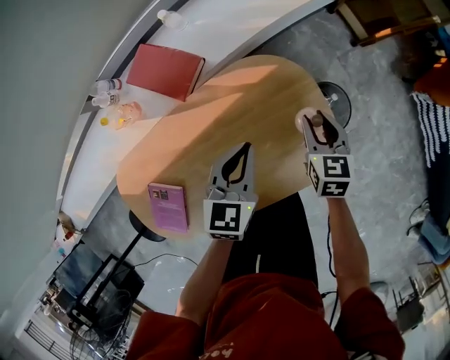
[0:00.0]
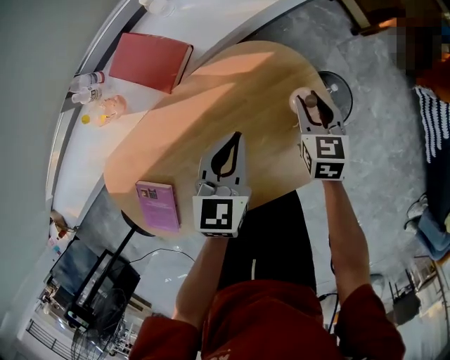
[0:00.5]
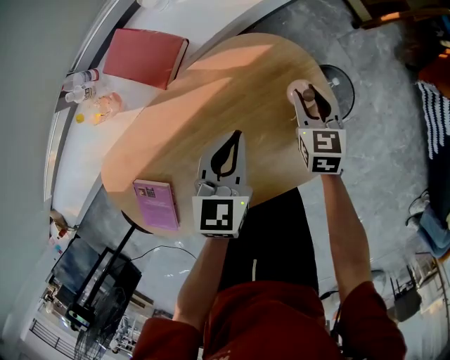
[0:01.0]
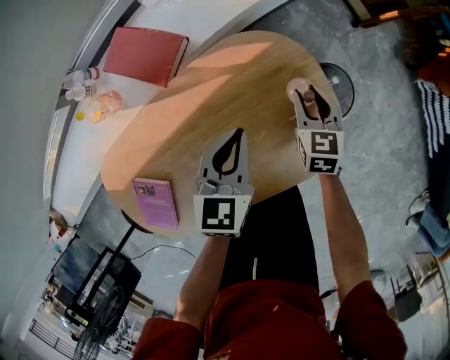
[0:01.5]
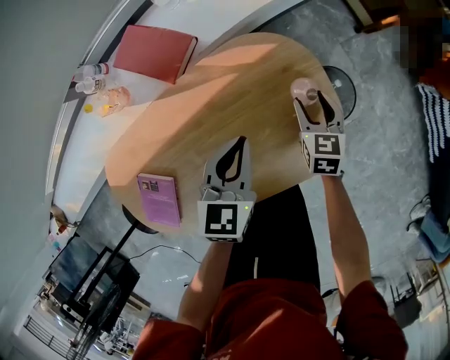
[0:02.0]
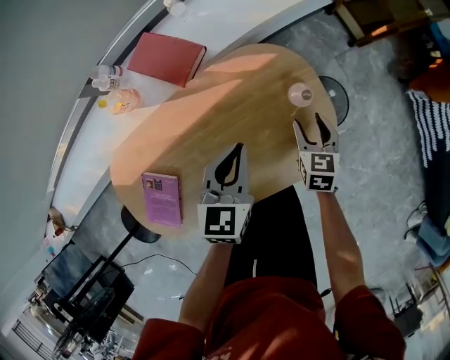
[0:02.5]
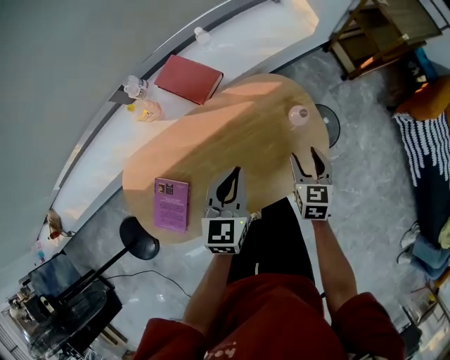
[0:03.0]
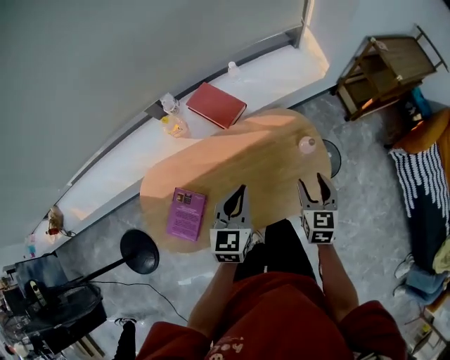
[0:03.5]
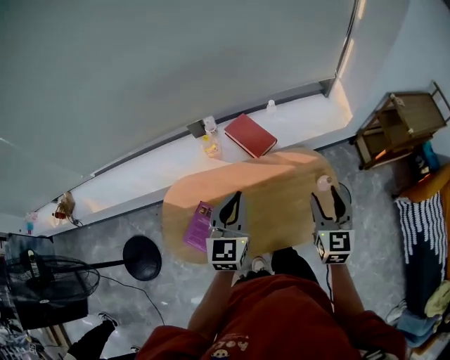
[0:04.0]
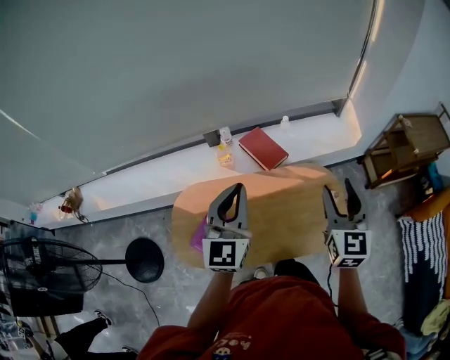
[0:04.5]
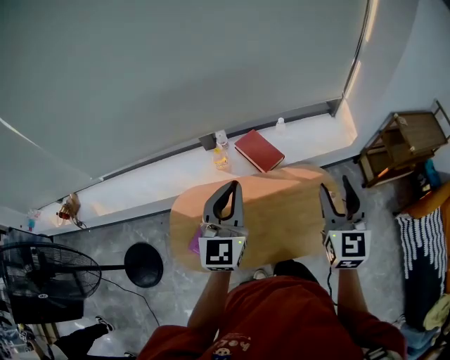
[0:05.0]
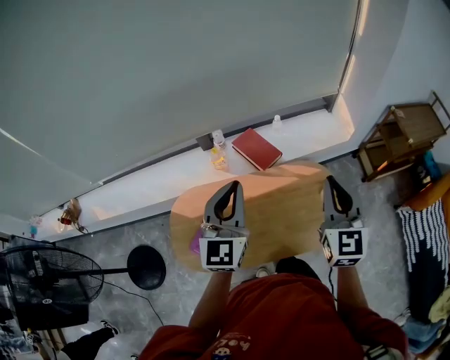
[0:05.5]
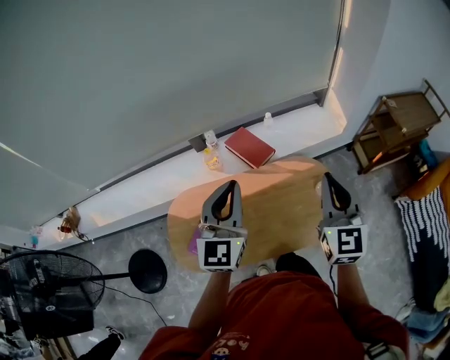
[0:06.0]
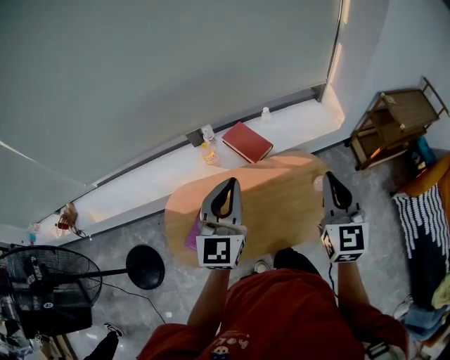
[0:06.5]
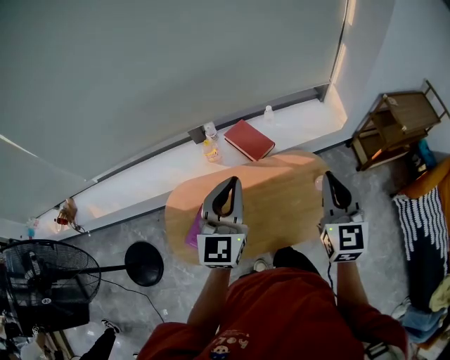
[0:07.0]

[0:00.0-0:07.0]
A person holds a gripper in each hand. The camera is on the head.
0:00.0 to 0:02.0: The right gripper is displaced downward by about 10 cm, and opens.
0:02.0 to 0:03.5: The left gripper shifts about 25 cm upward, backward and to the left, while the right gripper moves upward and backward, about 30 cm.
0:03.5 to 0:05.0: The right gripper goes some 30 cm upward, and swivels approximately 30 degrees, while the left gripper goes some 30 cm upward and to the left, and swivels about 30 degrees.
0:05.0 to 0:07.0: The right gripper closes up.

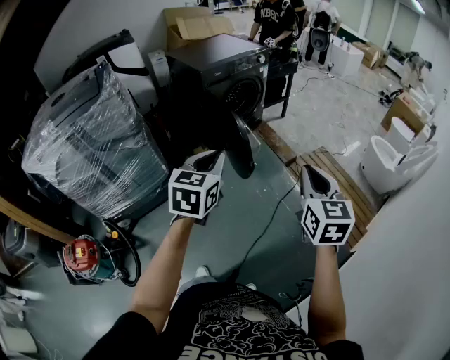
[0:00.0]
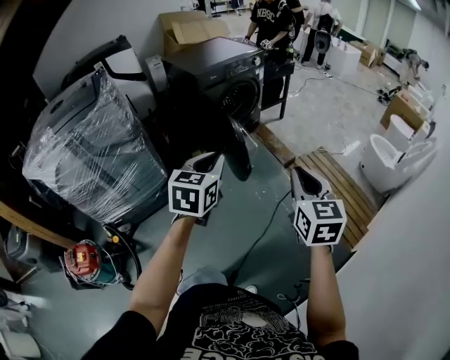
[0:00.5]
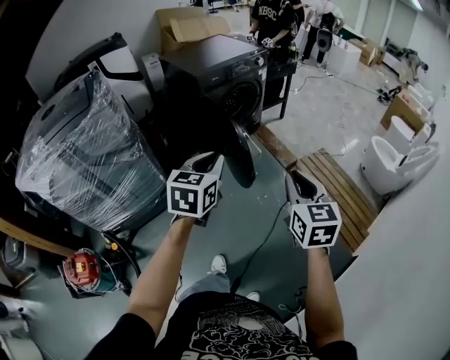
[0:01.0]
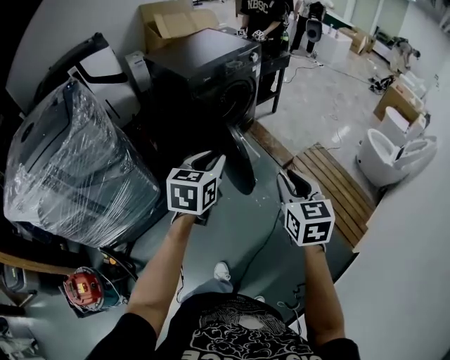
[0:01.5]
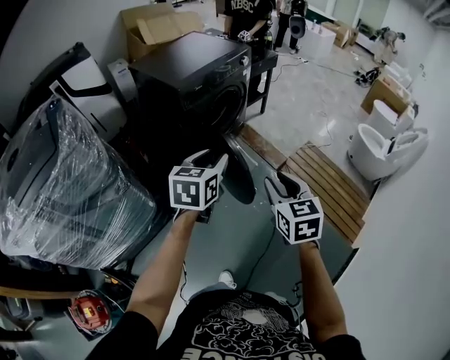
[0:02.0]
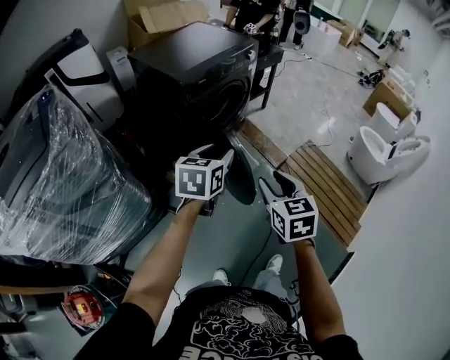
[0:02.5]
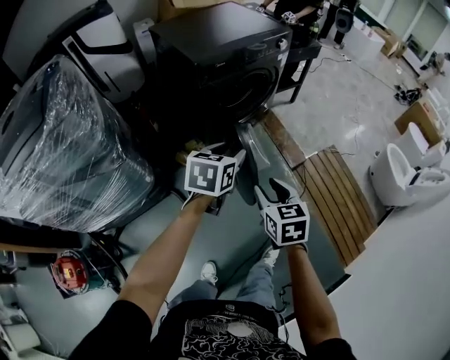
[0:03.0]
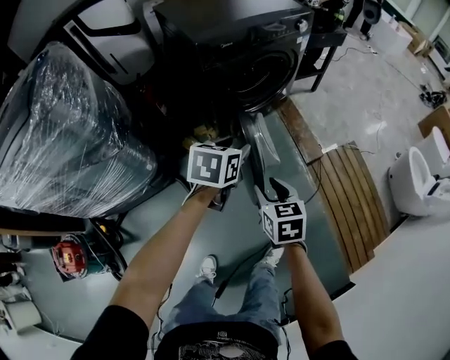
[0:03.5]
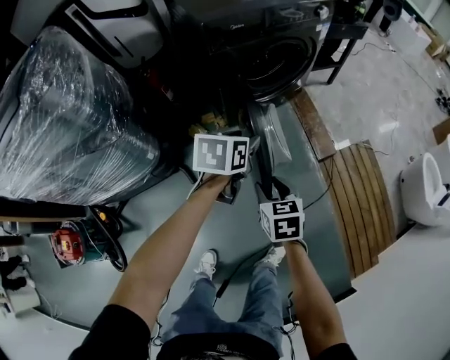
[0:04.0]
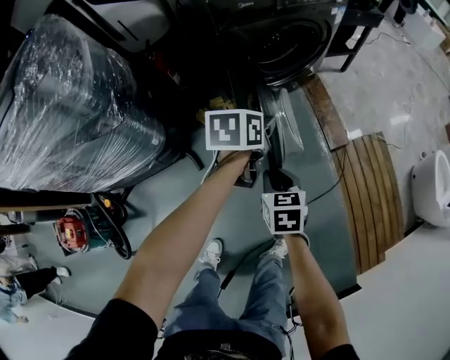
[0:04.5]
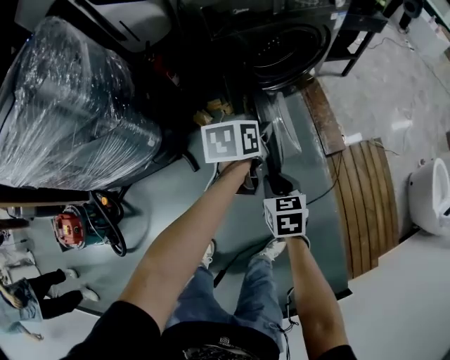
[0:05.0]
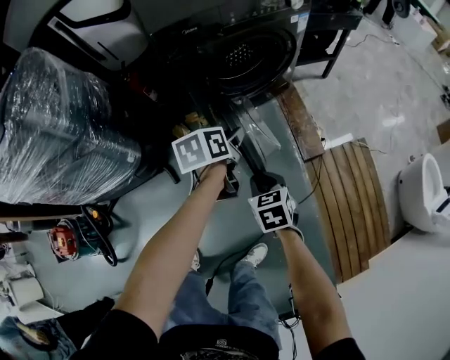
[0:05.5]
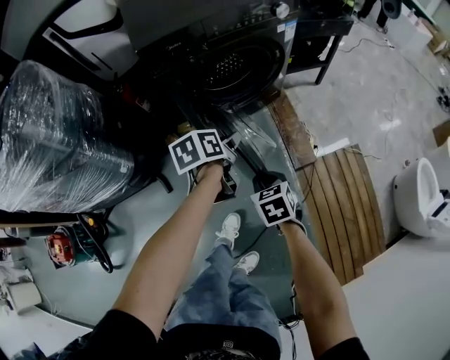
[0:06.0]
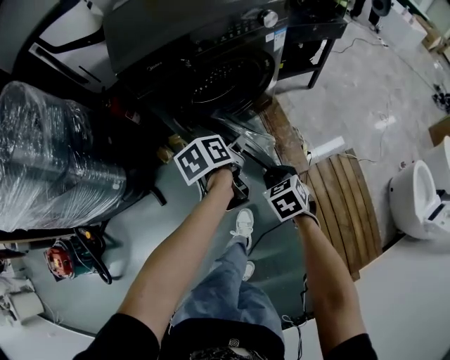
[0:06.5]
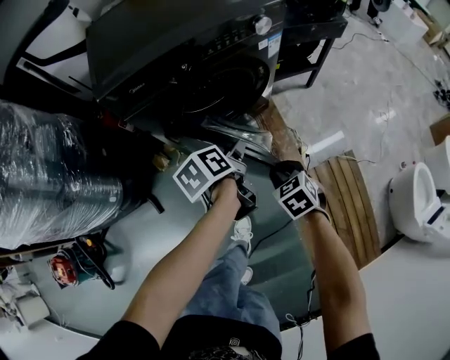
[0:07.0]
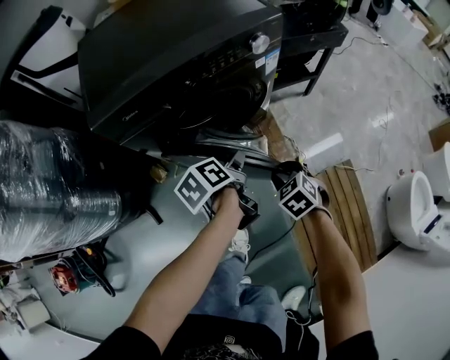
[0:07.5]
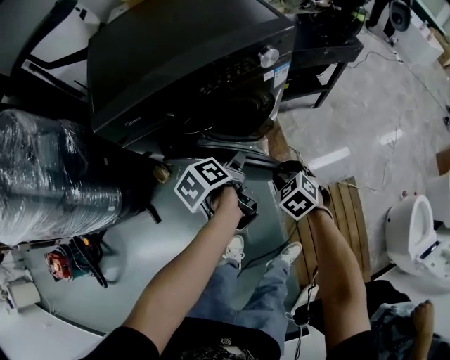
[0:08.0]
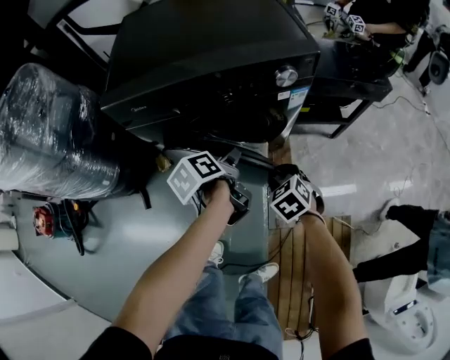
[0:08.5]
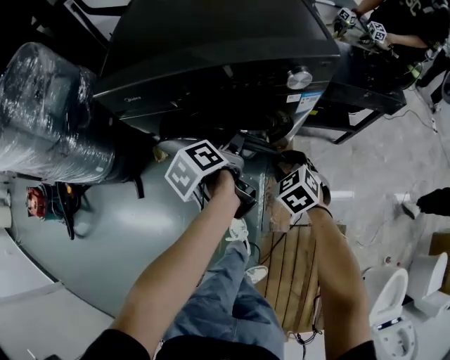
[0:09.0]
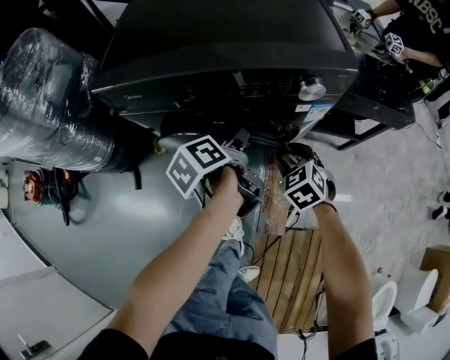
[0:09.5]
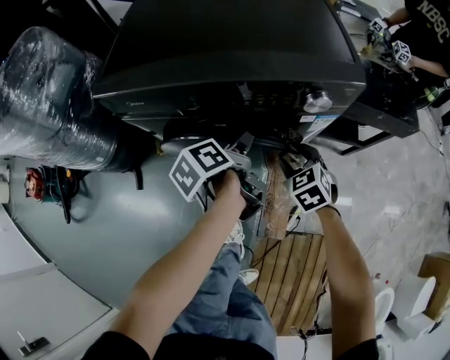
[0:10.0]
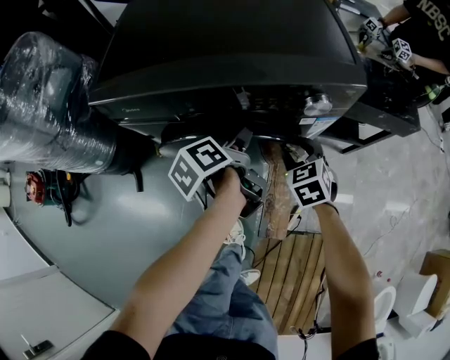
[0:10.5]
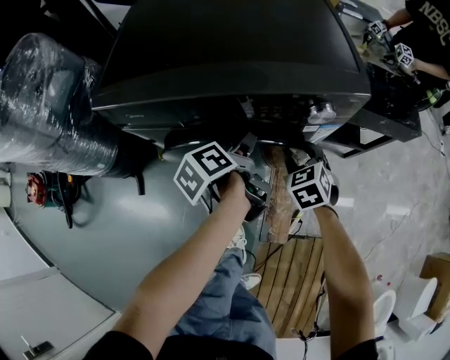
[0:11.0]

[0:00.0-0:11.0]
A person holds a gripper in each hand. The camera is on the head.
0:00.0 to 0:02.0: The left gripper moves forward, some 25 cm, and opens up, while the right gripper is displaced forward, to the left and downward by about 25 cm, and opens.
0:02.0 to 0:03.5: Both grippers move downward and forward, approximately 25 cm. The left gripper swivels roughly 20 degrees; the right gripper turns by approximately 20 degrees.
0:03.5 to 0:05.5: The right gripper goes approximately 15 cm downward, to the right and forward, and closes; the left gripper shifts about 15 cm downward, forward and to the right, and swivels approximately 40 degrees.
0:05.5 to 0:07.5: The right gripper heads forward and to the right, covering some 30 cm, and turns by some 30 degrees; the left gripper shifts some 20 cm forward and to the right, and swivels about 30 degrees.
0:07.5 to 0:09.0: The left gripper goes roughly 10 cm forward, and rotates approximately 30 degrees; the right gripper shifts about 15 cm forward, and turns by some 20 degrees.
0:09.0 to 0:11.0: The right gripper moves forward, approximately 10 cm. Meanwhile the left gripper moves forward, roughly 5 cm.

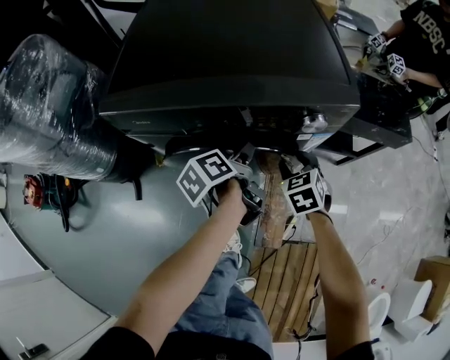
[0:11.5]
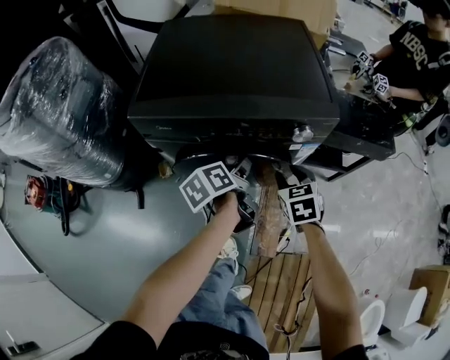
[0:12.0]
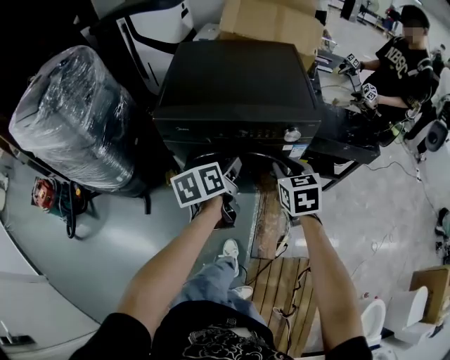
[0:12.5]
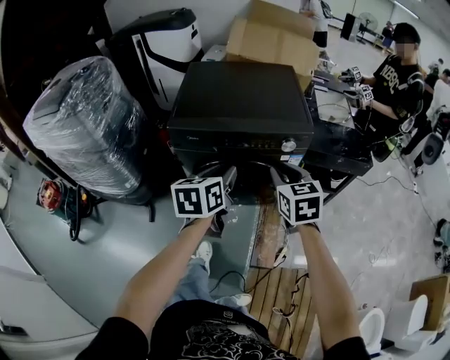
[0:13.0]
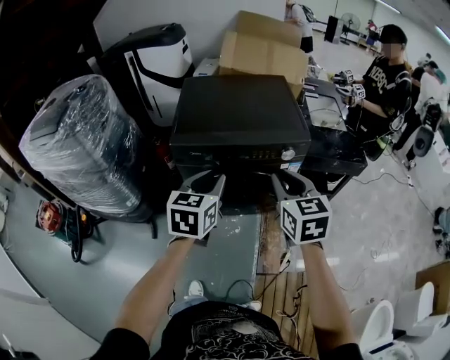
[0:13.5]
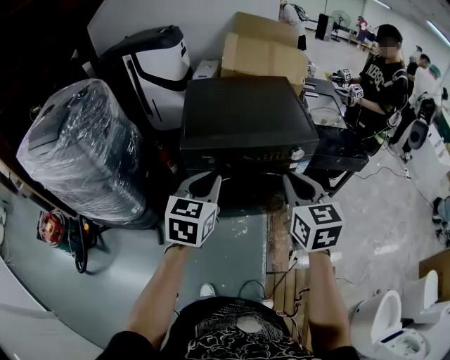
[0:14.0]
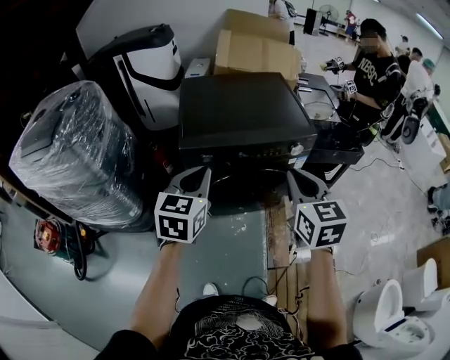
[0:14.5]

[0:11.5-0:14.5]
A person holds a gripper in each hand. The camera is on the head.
0:11.5 to 0:13.0: The two grippers go about 30 cm upward and backward. The right gripper swivels approximately 30 degrees, and closes its fingers. The left gripper rolls clockwise, seen from behind, by about 50 degrees, and closes its fingers.
0:13.0 to 0:14.5: The right gripper heads upward, to the left and backward, covering some 15 cm; the left gripper heads to the left and upward, covering about 15 cm, swivels roughly 30 degrees, and closes its fingers.

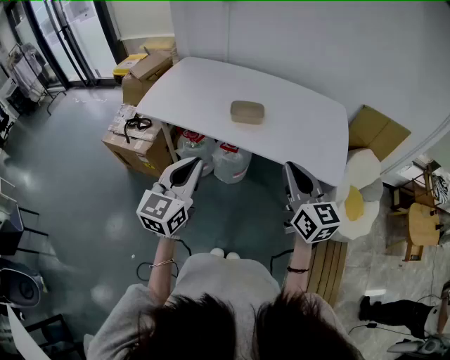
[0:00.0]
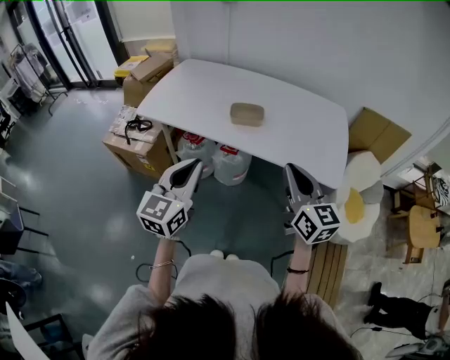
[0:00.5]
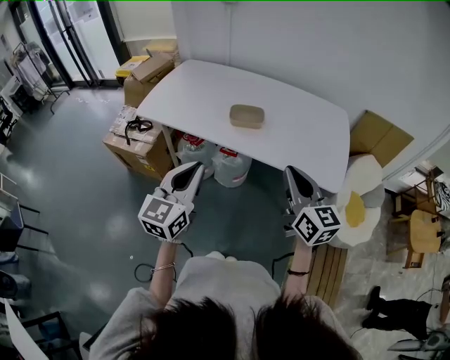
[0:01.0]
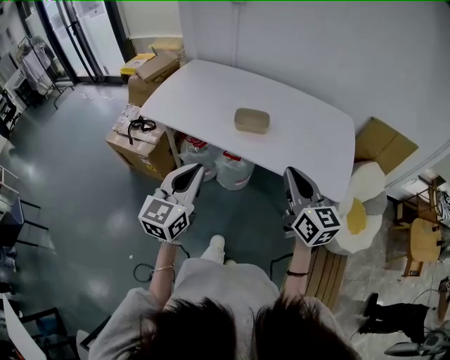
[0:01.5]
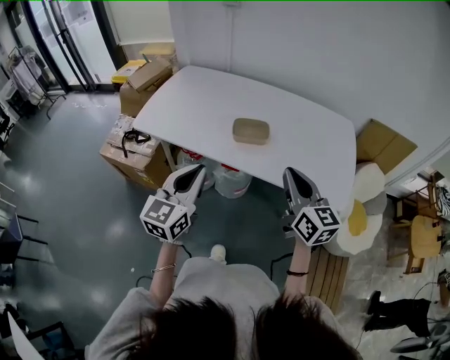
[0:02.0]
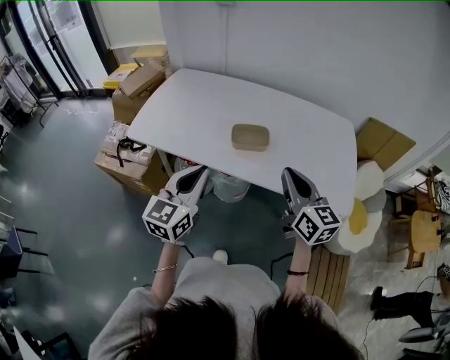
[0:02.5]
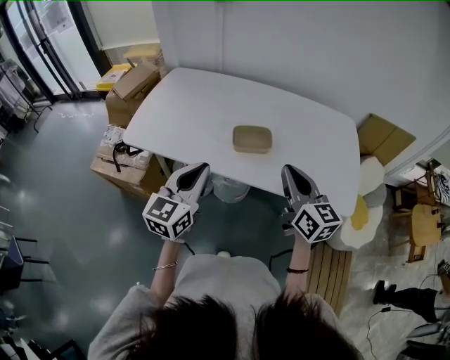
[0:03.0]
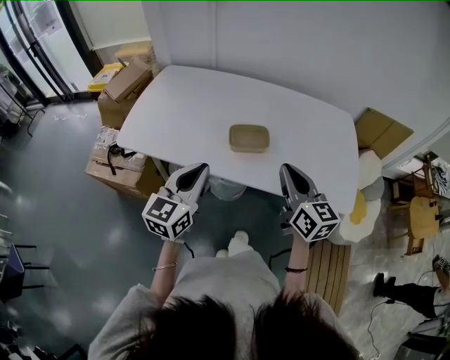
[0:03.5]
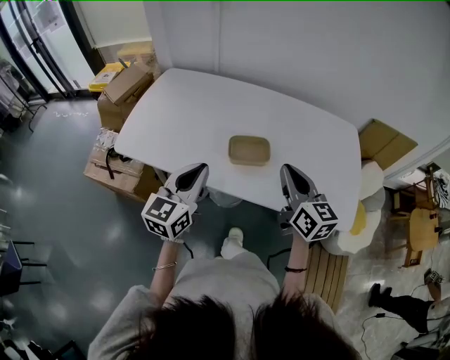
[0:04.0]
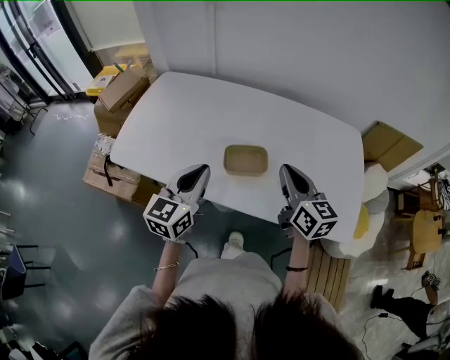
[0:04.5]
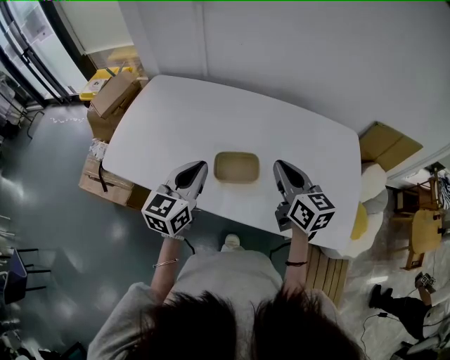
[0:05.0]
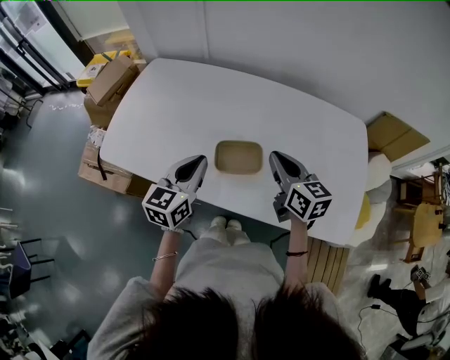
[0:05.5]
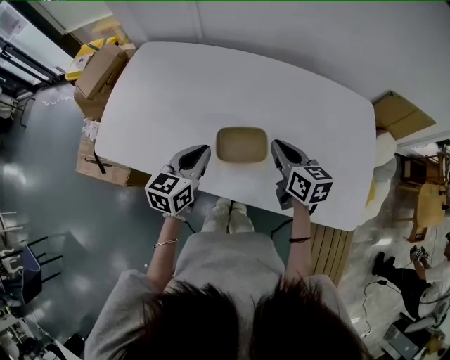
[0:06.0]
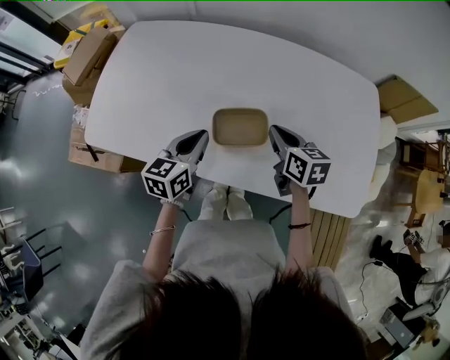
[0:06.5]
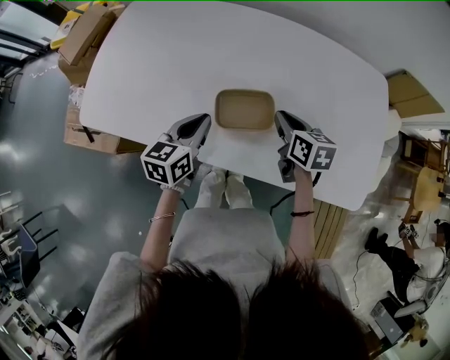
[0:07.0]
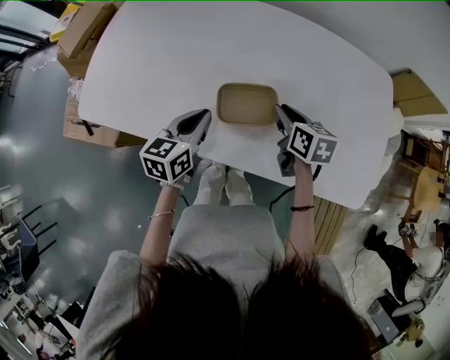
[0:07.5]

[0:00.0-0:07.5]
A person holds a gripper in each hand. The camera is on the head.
0:00.0 to 0:02.0: Both grippers travel together forward, some 10 cm.
0:02.0 to 0:04.0: Both grippers move forward, roughly 15 cm.
0:04.0 to 0:05.5: The two grippers go about 15 cm forward and downward.
0:05.5 to 0:07.5: Both grippers move downward, roughly 15 cm. The right gripper changes its angle by some 30 degrees.
